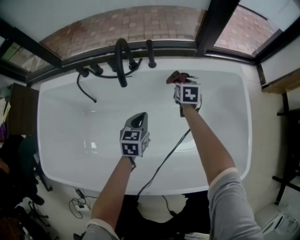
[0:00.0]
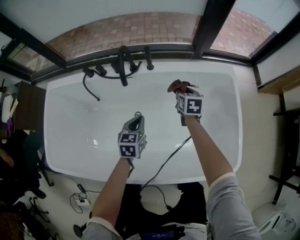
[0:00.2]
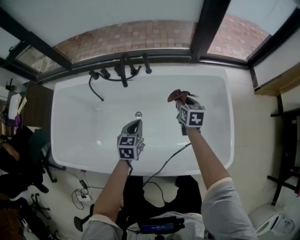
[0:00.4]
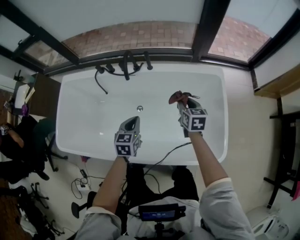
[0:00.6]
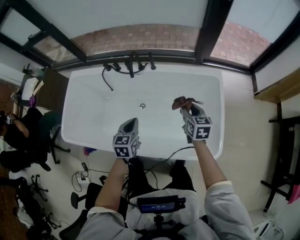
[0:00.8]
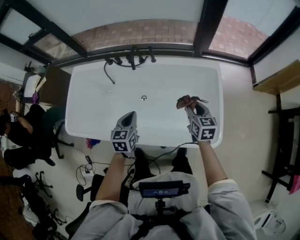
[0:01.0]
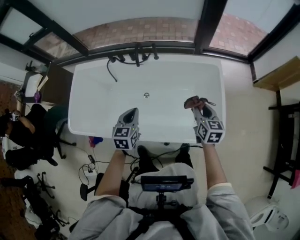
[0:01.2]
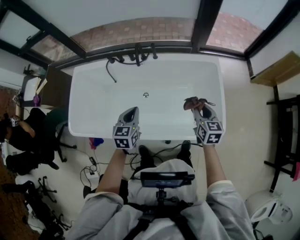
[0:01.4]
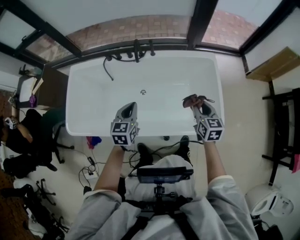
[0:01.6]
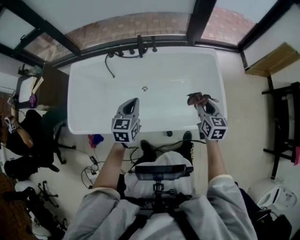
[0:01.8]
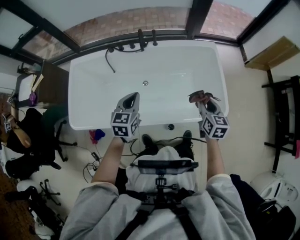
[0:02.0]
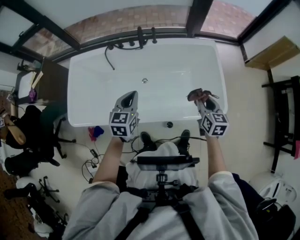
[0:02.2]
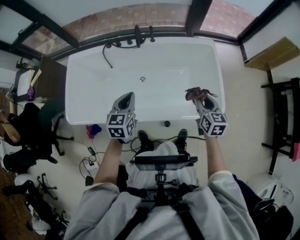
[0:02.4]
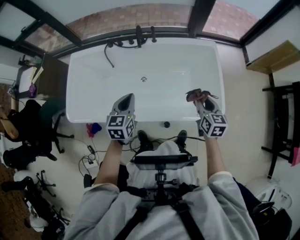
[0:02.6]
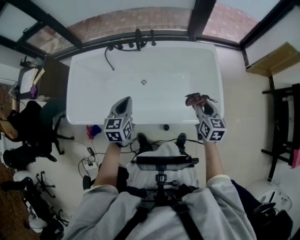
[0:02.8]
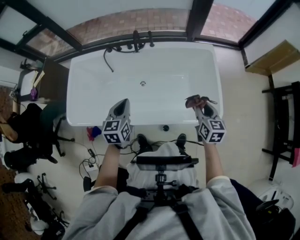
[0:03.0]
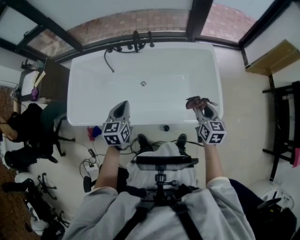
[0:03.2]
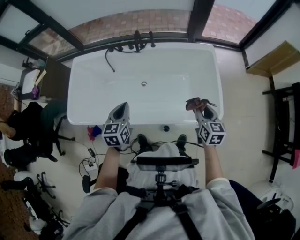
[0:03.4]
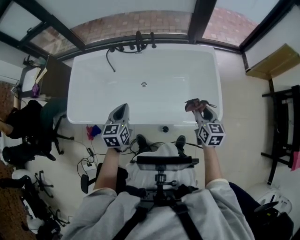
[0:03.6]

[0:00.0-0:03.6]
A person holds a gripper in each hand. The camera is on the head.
0:00.0 to 0:01.8: The right gripper is displaced backward and upward by some 60 cm. The left gripper shifts approximately 40 cm upward and backward.
0:01.8 to 0:03.6: The grippers both shift backward by roughly 10 cm.

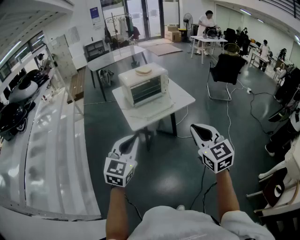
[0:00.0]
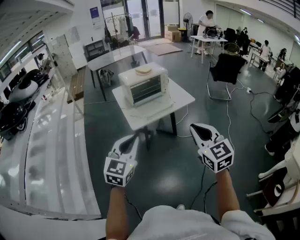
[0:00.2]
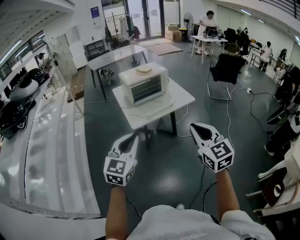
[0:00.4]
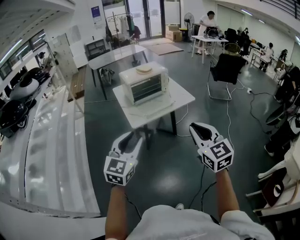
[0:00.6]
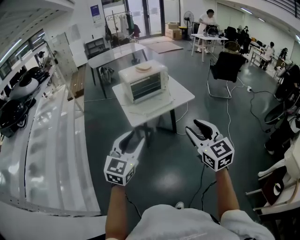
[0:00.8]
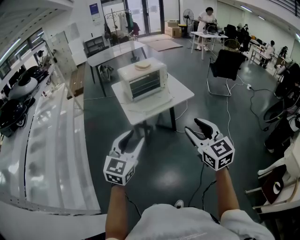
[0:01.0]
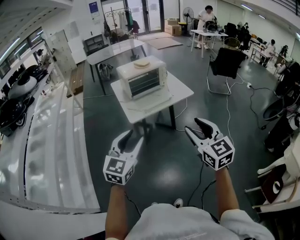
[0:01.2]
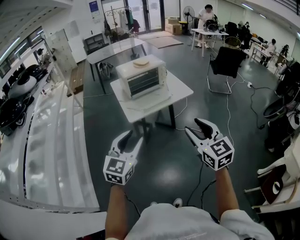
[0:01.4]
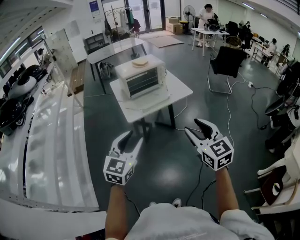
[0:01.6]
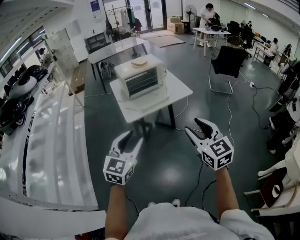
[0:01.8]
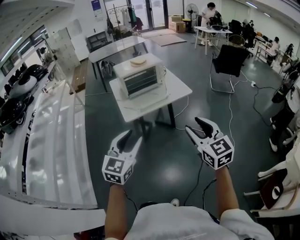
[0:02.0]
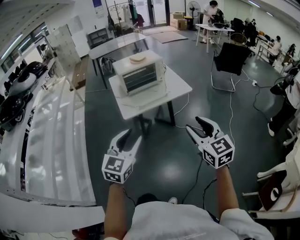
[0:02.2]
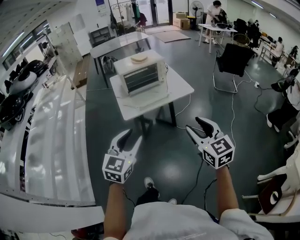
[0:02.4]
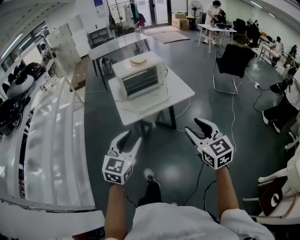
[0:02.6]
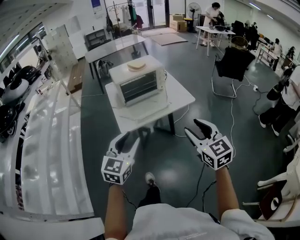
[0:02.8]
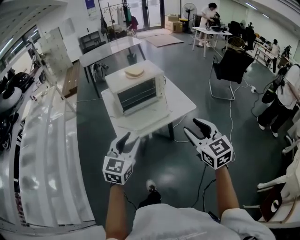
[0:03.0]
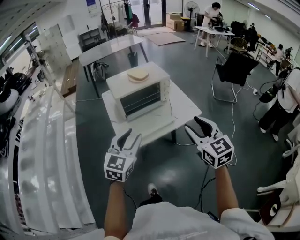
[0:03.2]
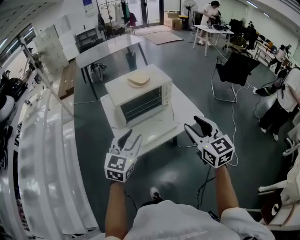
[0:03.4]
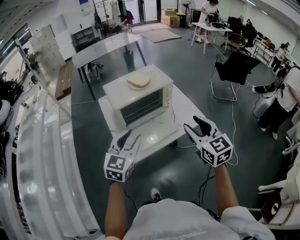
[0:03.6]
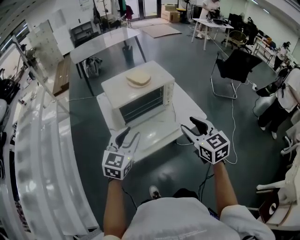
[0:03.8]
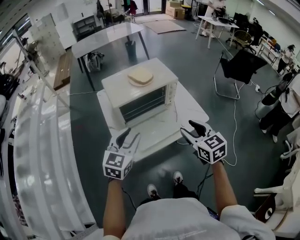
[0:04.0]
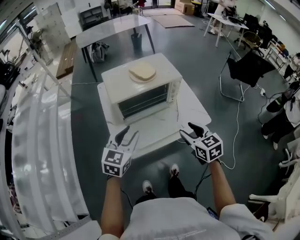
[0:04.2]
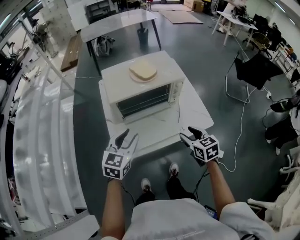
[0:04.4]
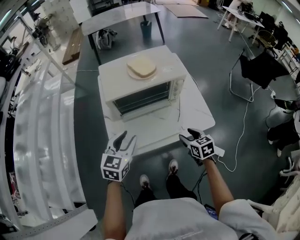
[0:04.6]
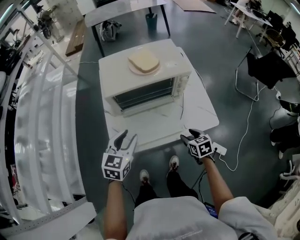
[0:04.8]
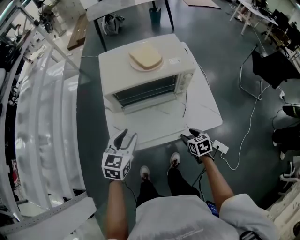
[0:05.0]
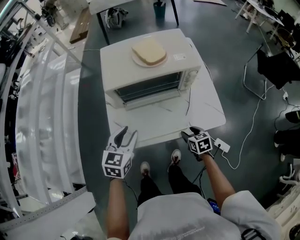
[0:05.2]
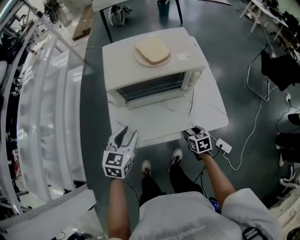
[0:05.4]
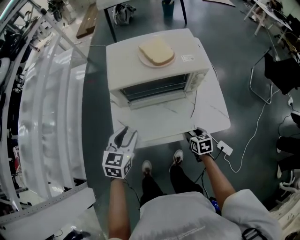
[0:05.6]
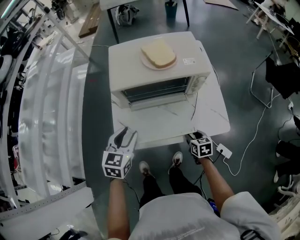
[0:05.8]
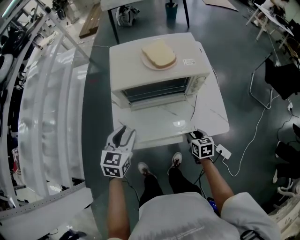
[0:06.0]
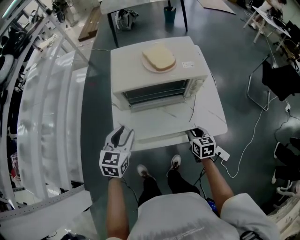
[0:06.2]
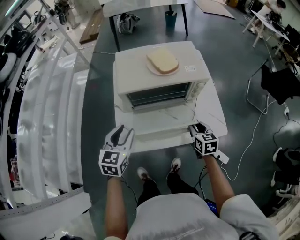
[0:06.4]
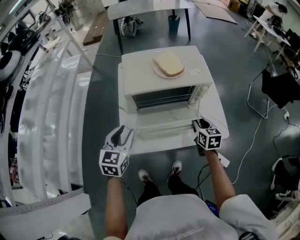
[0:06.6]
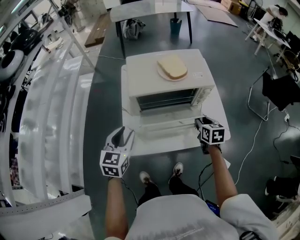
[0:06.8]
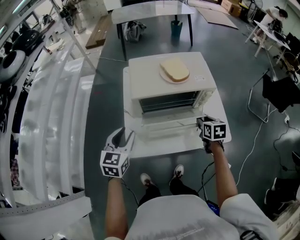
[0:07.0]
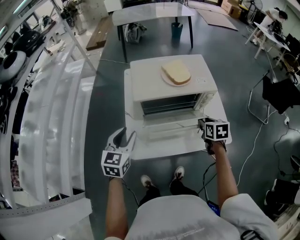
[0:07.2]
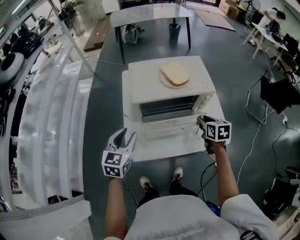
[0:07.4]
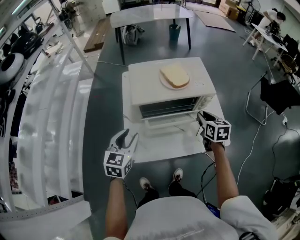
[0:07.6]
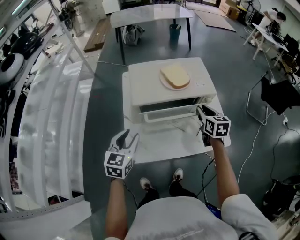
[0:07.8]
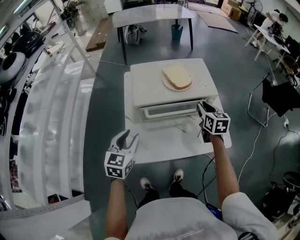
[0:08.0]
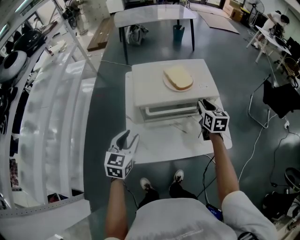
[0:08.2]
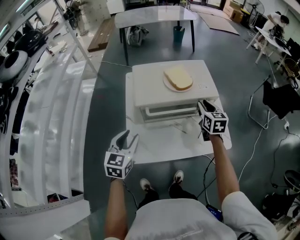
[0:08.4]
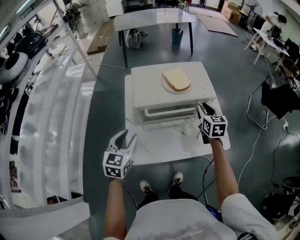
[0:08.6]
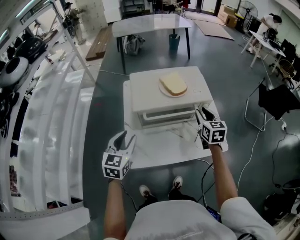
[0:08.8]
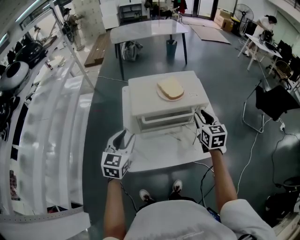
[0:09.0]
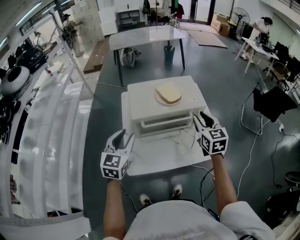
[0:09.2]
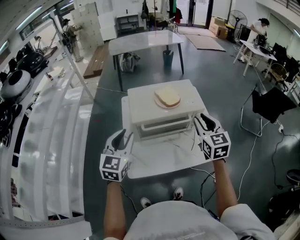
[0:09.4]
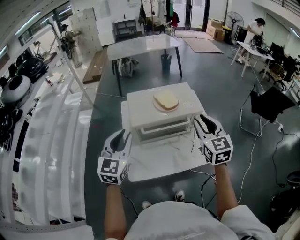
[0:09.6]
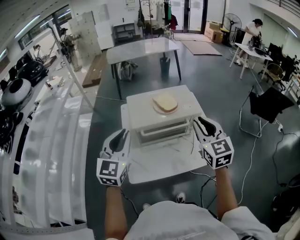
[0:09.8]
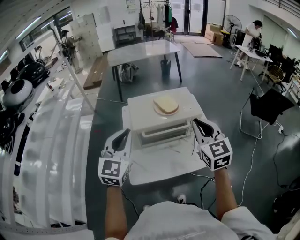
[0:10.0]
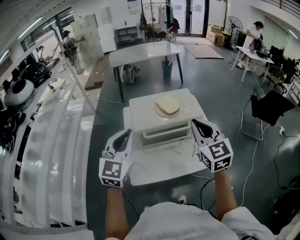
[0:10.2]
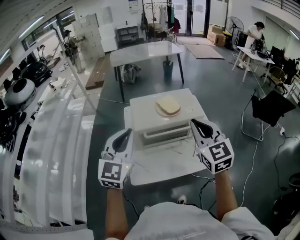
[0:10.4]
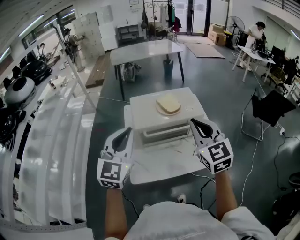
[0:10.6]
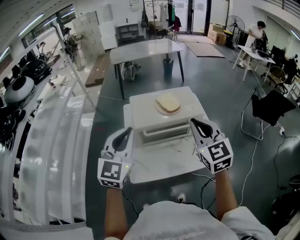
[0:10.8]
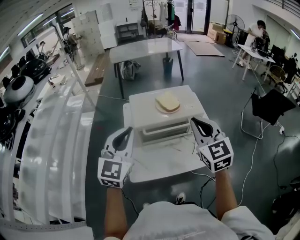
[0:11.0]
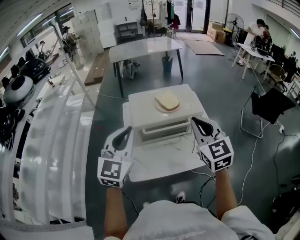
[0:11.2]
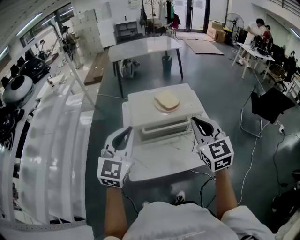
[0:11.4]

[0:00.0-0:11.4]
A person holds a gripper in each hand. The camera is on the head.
0:00.0 to 0:01.4: The right gripper opens; the left gripper opens up.
0:01.4 to 0:02.8: The right gripper travels forward and to the right by approximately 15 cm. Meanwhile the left gripper moves forward, approximately 15 cm.
0:02.8 to 0:04.2: Both grippers move forward, approximately 30 cm. The right gripper swivels approximately 20 degrees.
0:04.2 to 0:05.6: The right gripper shifts roughly 25 cm downward, and changes its angle by about 30 degrees. Meanwhile the left gripper travels downward by approximately 10 cm, and turns by about 20 degrees.
0:05.6 to 0:07.2: The right gripper shifts about 20 cm upward and forward. The left gripper is displaced to the left and upward by roughly 10 cm.
0:07.2 to 0:08.6: The right gripper travels forward and upward by approximately 10 cm, and swivels roughly 20 degrees.
0:08.6 to 0:10.0: The right gripper heads upward and backward, covering roughly 25 cm, and turns by some 20 degrees. The left gripper goes some 20 cm upward, turns by some 30 degrees, and closes.
0:10.0 to 0:11.4: The grippers make only small movements.

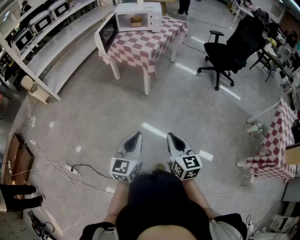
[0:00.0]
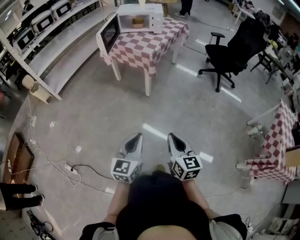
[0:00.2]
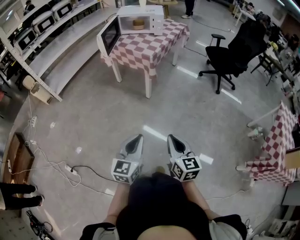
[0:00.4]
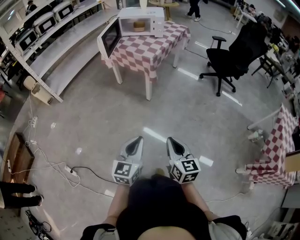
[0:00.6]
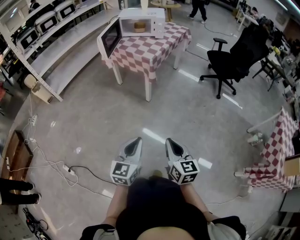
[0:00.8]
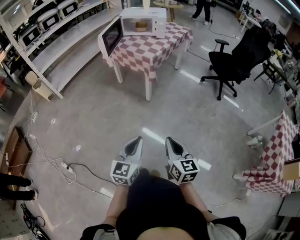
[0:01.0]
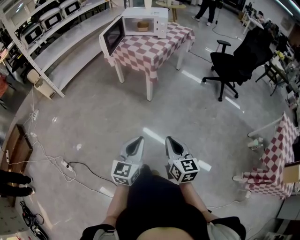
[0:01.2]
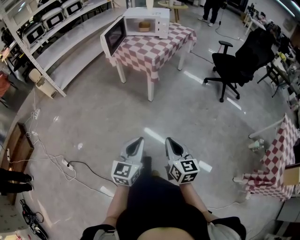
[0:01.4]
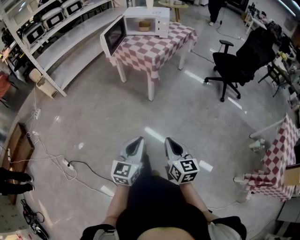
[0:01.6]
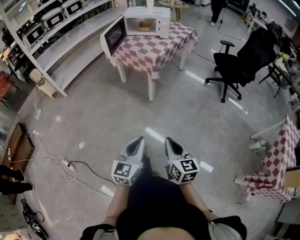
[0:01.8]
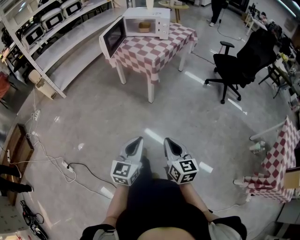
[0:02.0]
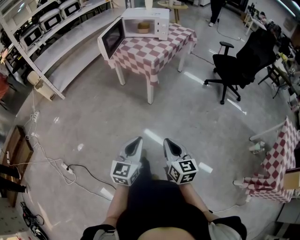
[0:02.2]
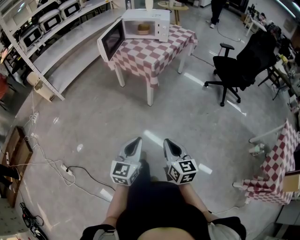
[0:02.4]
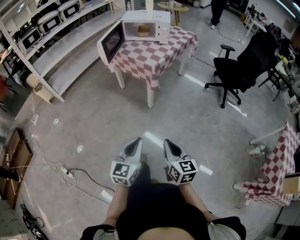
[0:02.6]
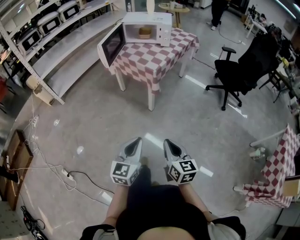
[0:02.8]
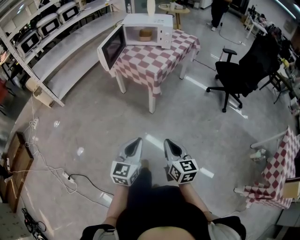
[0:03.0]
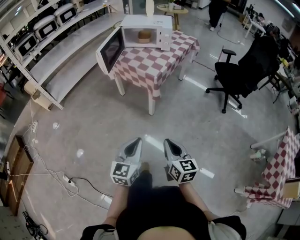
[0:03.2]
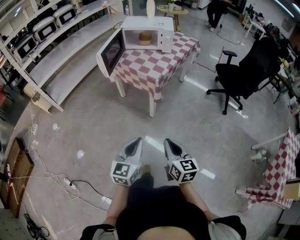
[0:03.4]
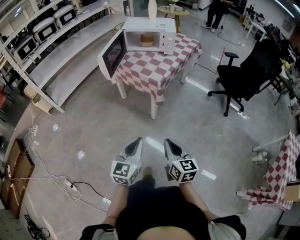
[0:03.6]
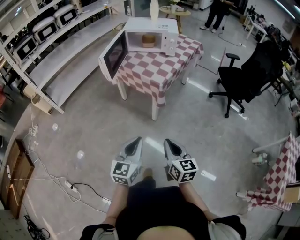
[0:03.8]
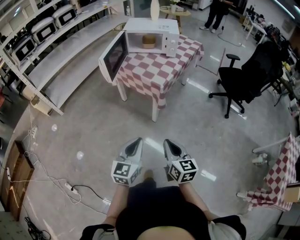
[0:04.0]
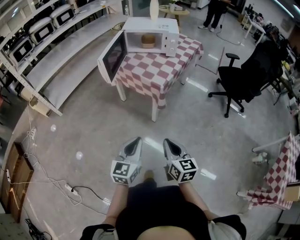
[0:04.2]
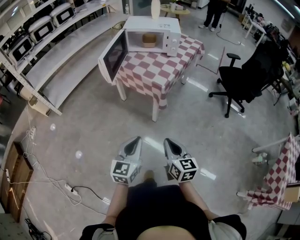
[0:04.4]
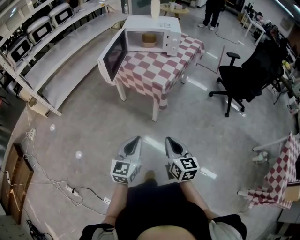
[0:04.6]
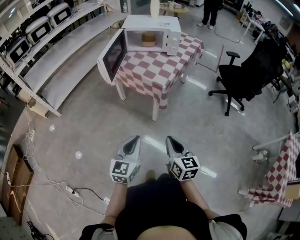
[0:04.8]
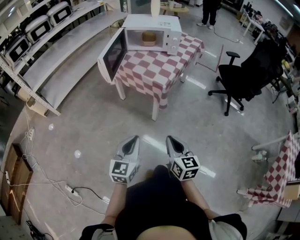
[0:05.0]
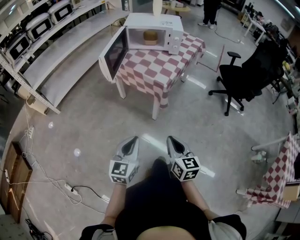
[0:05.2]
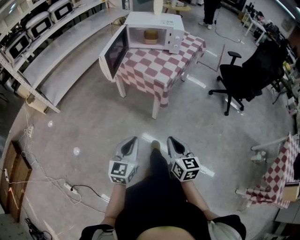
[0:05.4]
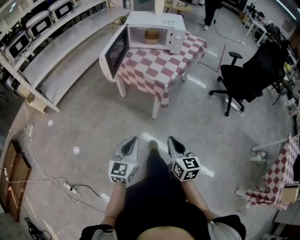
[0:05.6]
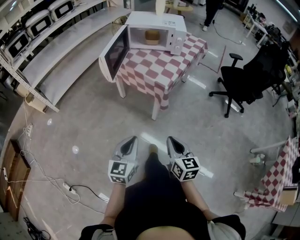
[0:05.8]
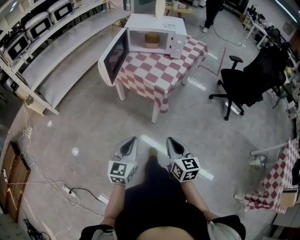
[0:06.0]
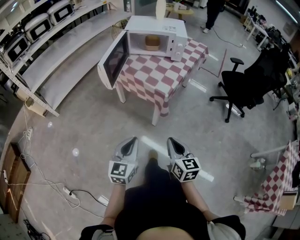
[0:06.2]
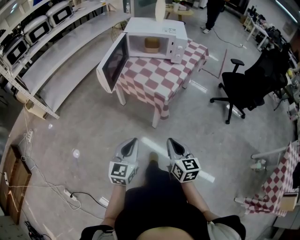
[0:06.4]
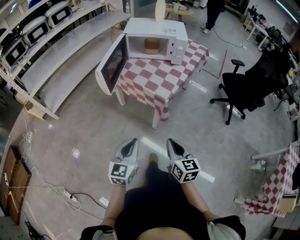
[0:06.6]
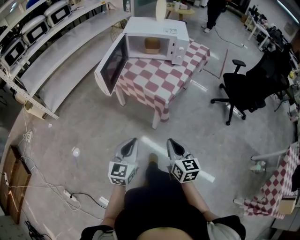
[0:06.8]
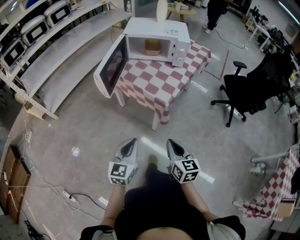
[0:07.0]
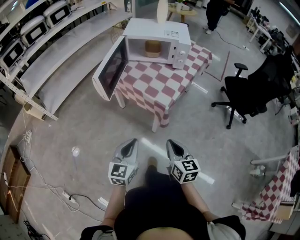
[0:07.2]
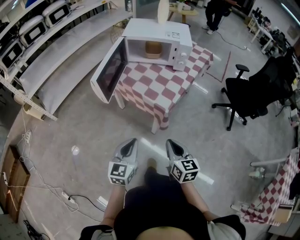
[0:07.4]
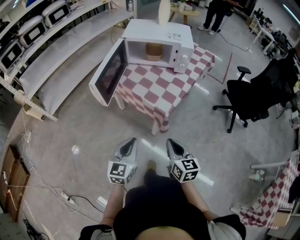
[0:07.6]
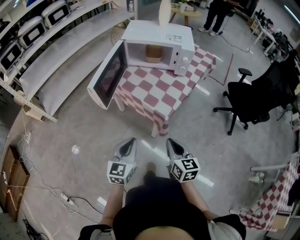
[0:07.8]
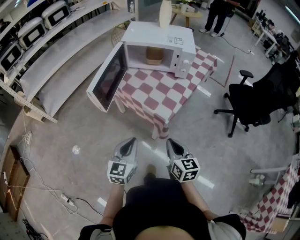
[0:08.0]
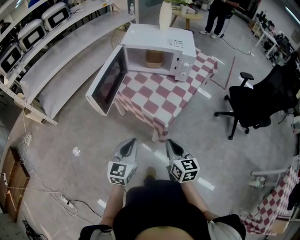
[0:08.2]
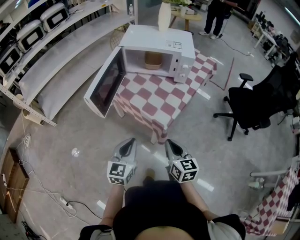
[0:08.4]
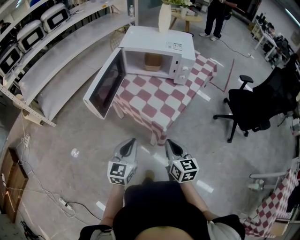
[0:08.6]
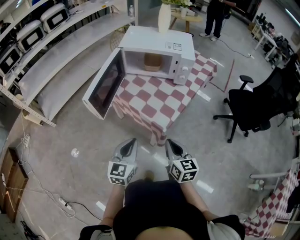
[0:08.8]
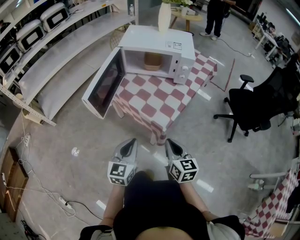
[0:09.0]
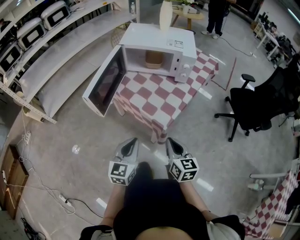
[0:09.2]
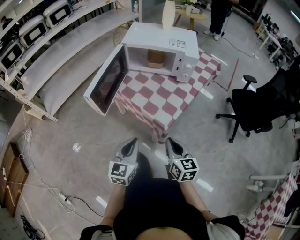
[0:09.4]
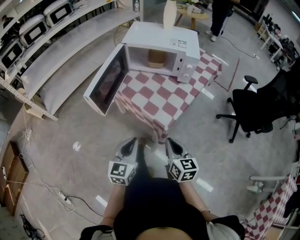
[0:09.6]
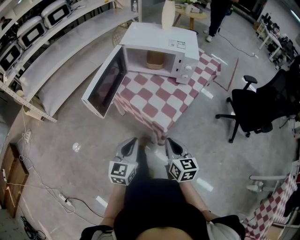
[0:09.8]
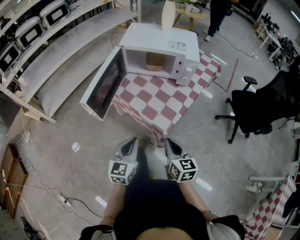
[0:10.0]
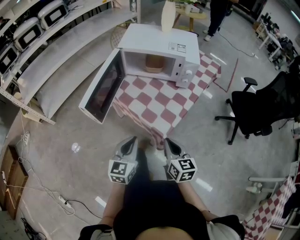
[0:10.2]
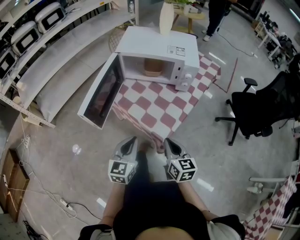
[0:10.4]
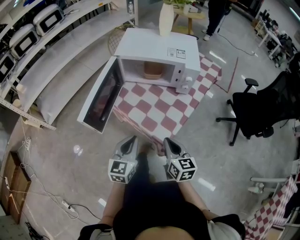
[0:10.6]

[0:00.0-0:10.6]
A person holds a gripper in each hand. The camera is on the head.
0:00.0 to 0:01.6: The right gripper shifts by approximately 5 cm. Meanwhile the left gripper is displaced to the right by about 5 cm.
0:01.6 to 0:03.0: Both grippers travel together forward, some 15 cm.
0:03.0 to 0:04.6: The two grippers go approximately 15 cm forward and to the left.
0:04.6 to 0:06.0: The left gripper shifts by approximately 5 cm.
0:06.0 to 0:07.6: The two grippers go roughly 15 cm forward.
0:07.6 to 0:09.0: Both grippers travel together forward, roughly 10 cm.
0:09.0 to 0:10.6: The grippers both shift forward by approximately 10 cm.
